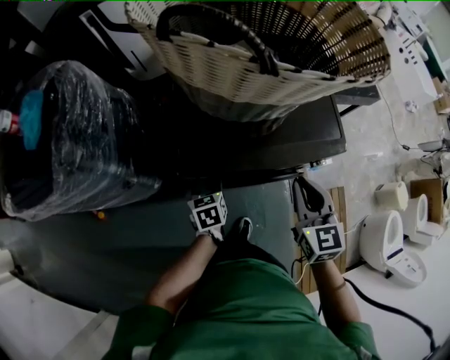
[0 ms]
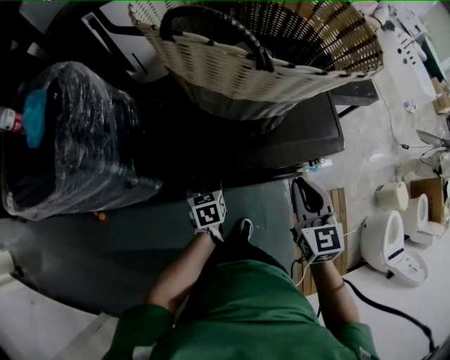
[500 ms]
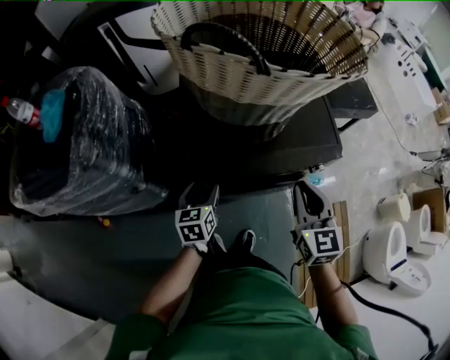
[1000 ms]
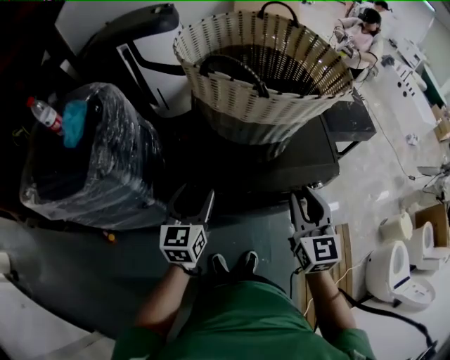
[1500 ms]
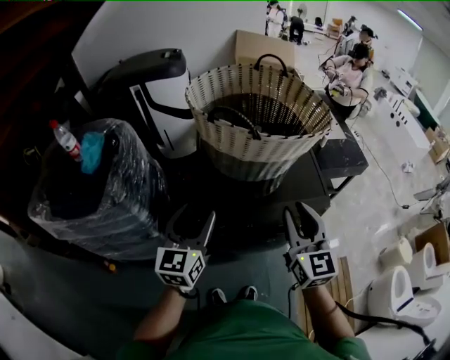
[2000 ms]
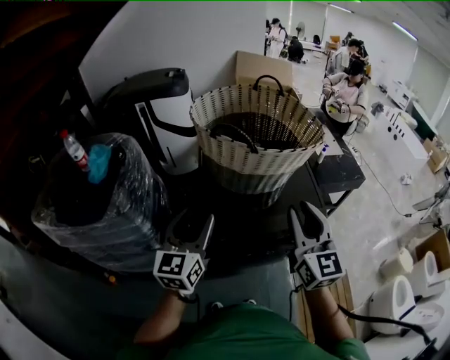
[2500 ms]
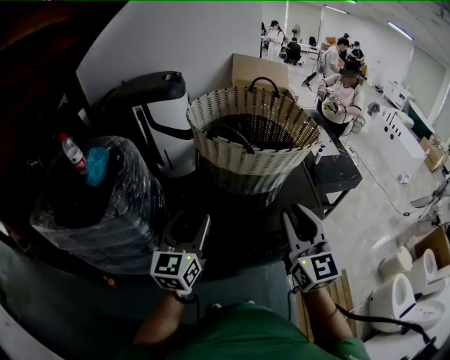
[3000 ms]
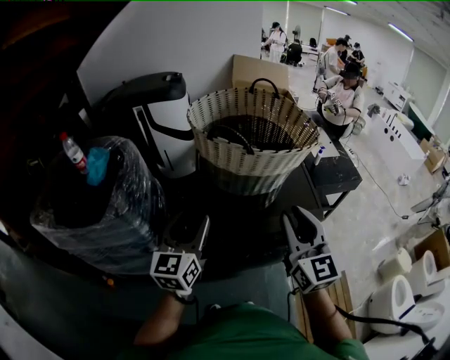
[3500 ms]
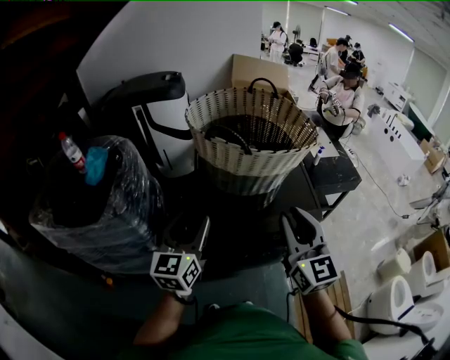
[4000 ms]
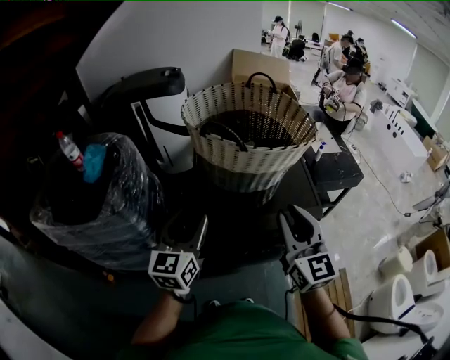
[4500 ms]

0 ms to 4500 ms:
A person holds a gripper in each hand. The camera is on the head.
0 ms to 2000 ms: The right gripper goes about 20 cm upward, and changes its angle by about 20 degrees; the left gripper is displaced upward by about 35 cm, and points its fingers roughly 50 degrees further upward.
2000 ms to 4500 ms: The right gripper is displaced upward by approximately 5 cm.

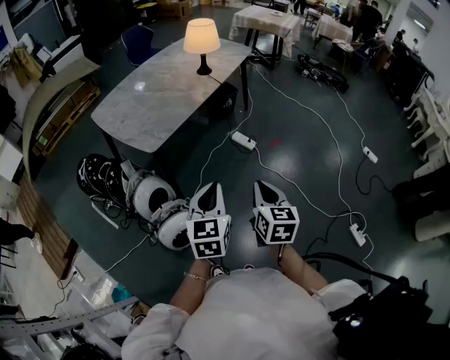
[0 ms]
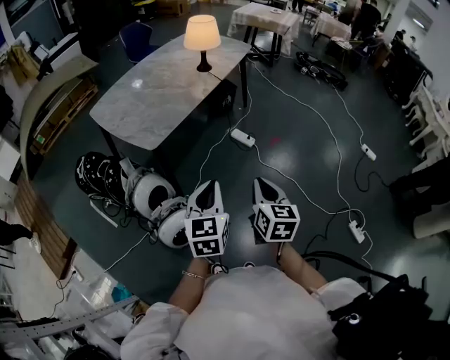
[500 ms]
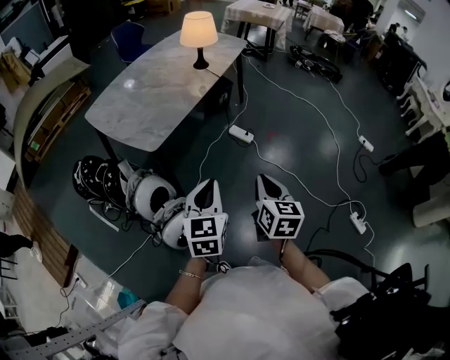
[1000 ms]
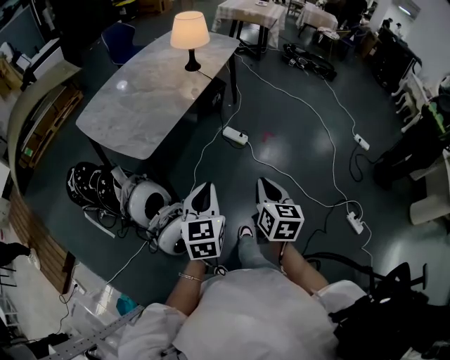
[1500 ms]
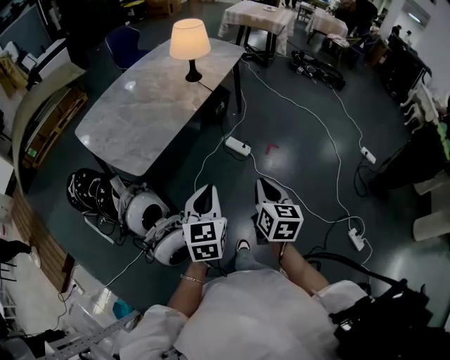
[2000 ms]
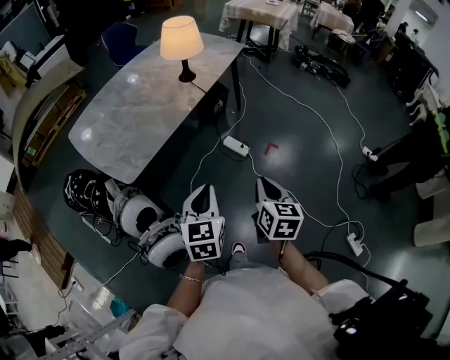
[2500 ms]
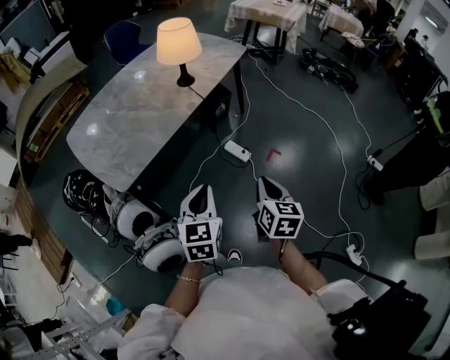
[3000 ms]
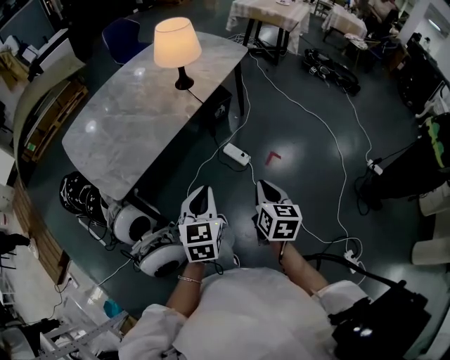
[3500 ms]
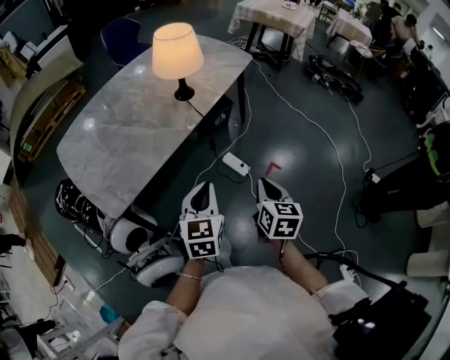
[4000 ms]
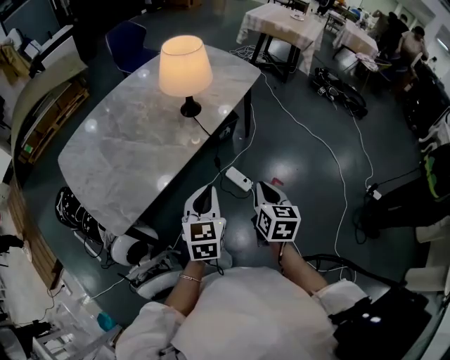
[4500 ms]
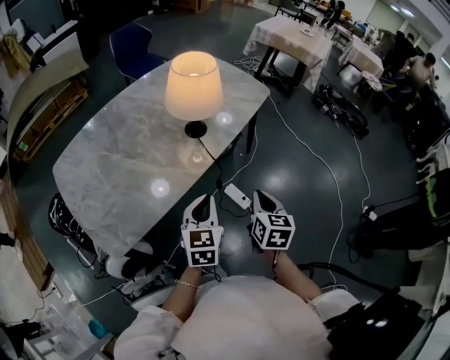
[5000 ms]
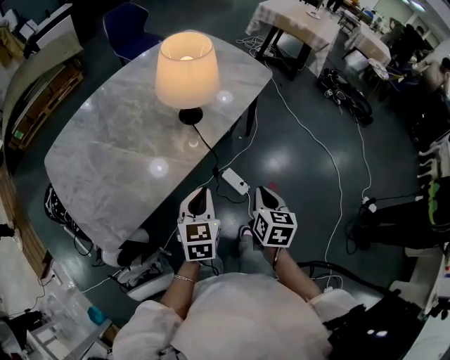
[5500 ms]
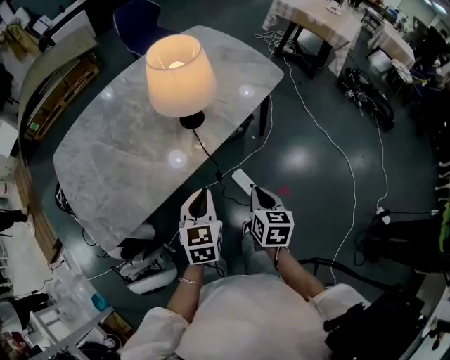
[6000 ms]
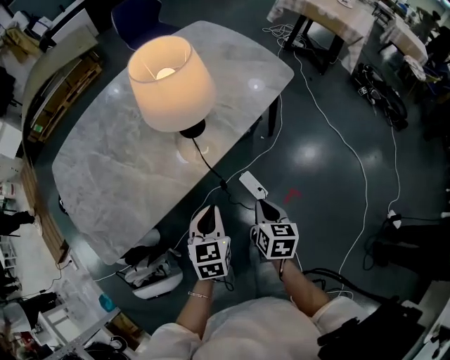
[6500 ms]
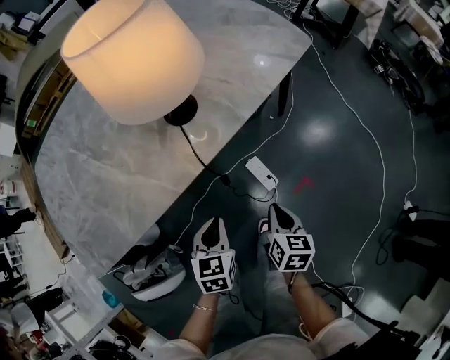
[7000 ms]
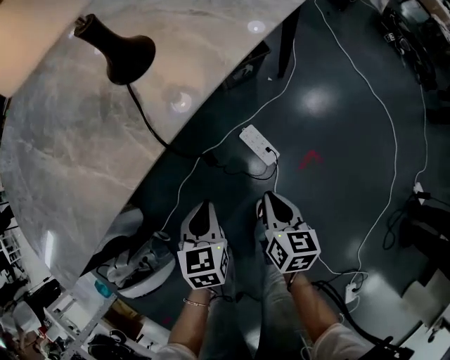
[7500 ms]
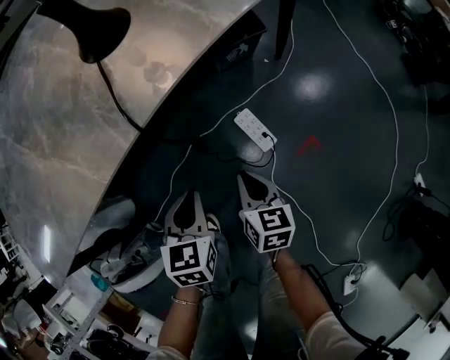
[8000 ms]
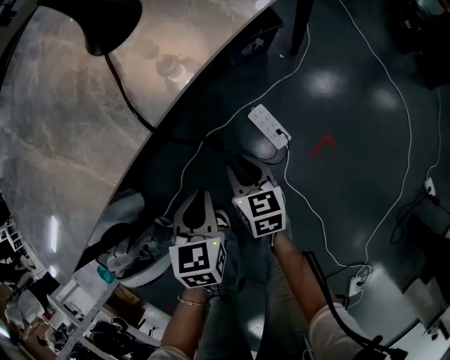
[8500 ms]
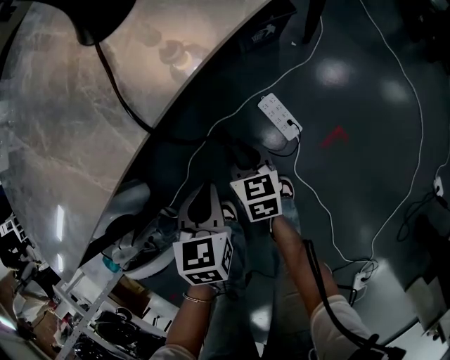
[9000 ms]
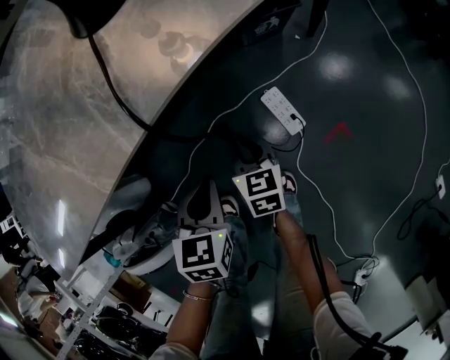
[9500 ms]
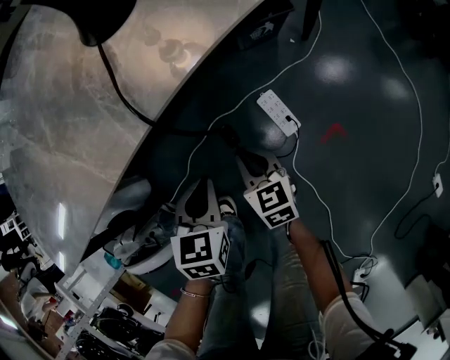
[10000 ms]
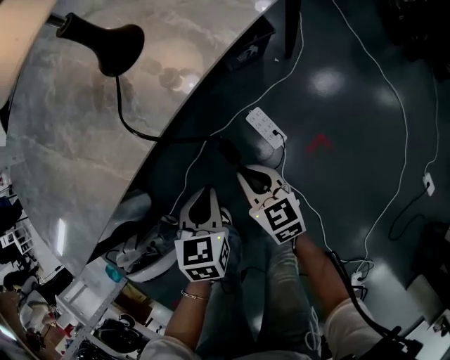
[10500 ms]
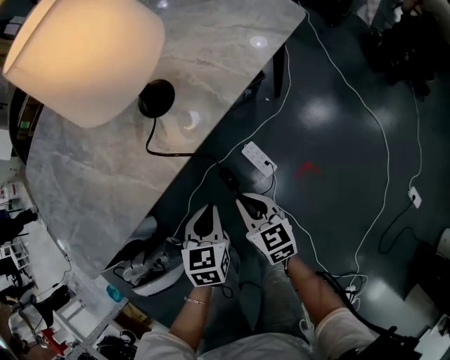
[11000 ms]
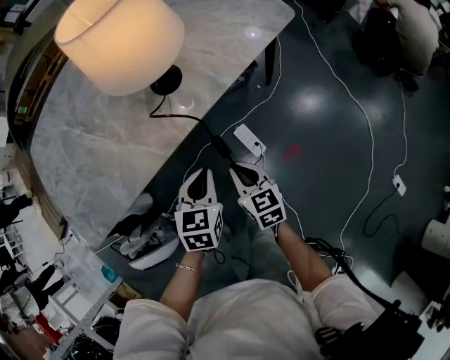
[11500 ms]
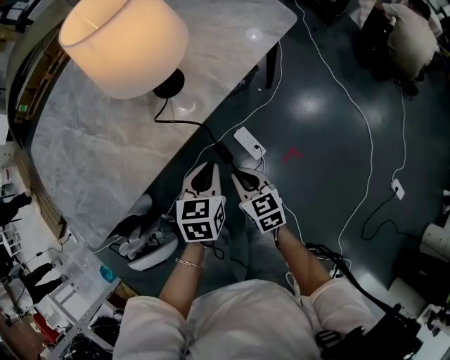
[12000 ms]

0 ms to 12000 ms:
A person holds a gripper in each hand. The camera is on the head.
0 ms to 2000 ms: Both grippers travel together forward, roughly 15 cm.
2000 ms to 4000 ms: The grippers both shift forward by approximately 25 cm.
4000 ms to 6000 ms: Both grippers travel together forward, about 25 cm.
6000 ms to 8000 ms: Both grippers travel together downward, approximately 35 cm.
8000 ms to 10000 ms: The right gripper shifts about 5 cm to the left, swivels roughly 20 degrees, and opens, then closes once more.
10000 ms to 12000 ms: The grippers both shift upward by approximately 25 cm.

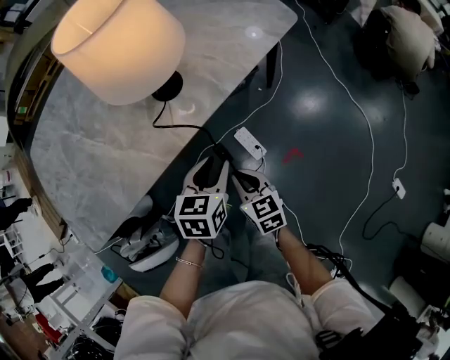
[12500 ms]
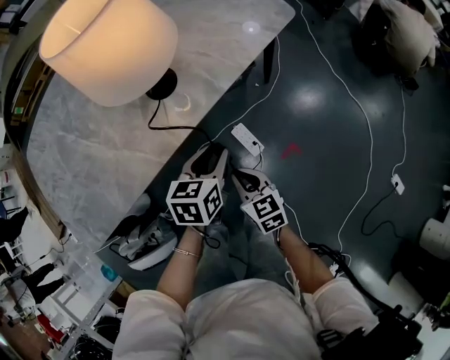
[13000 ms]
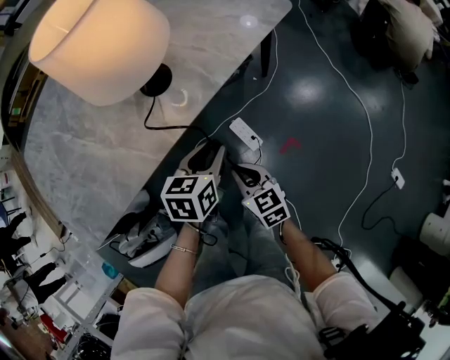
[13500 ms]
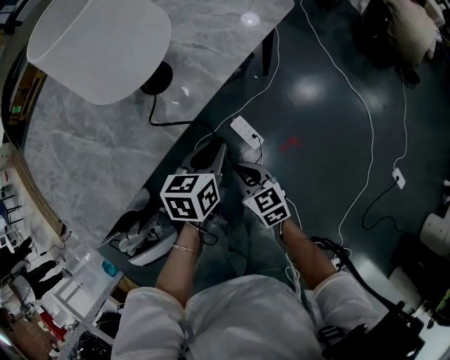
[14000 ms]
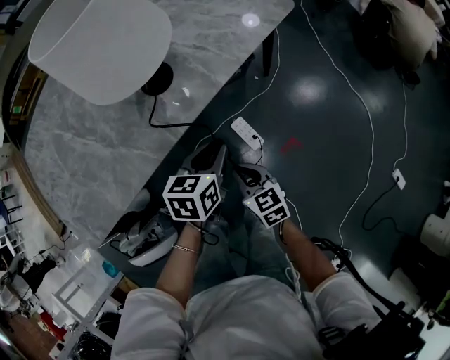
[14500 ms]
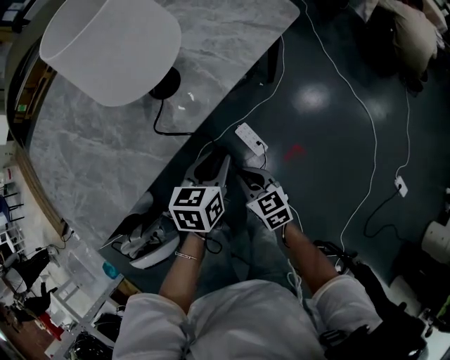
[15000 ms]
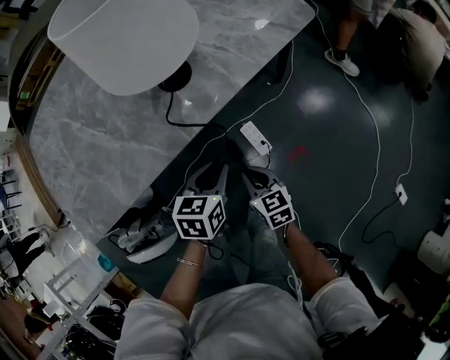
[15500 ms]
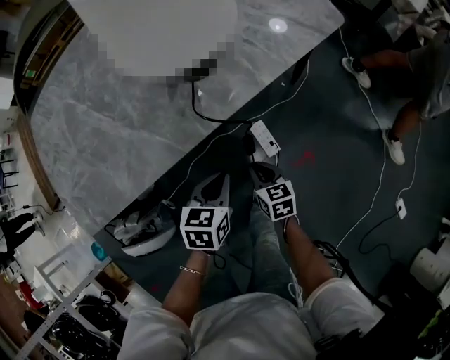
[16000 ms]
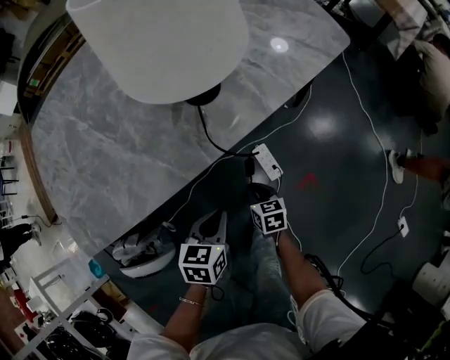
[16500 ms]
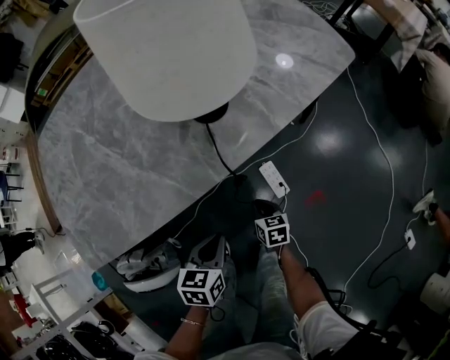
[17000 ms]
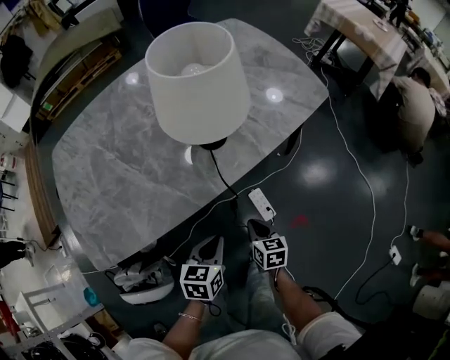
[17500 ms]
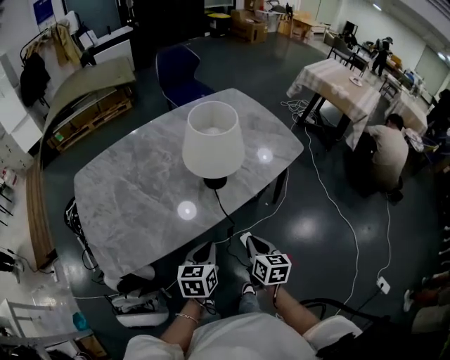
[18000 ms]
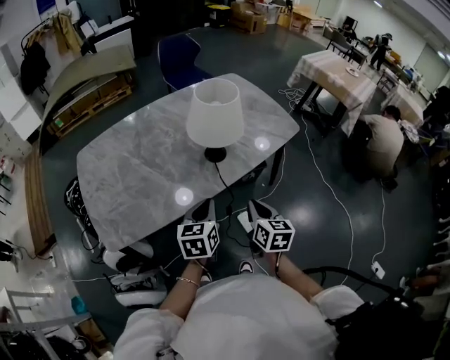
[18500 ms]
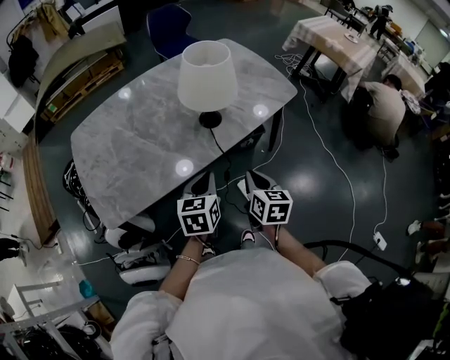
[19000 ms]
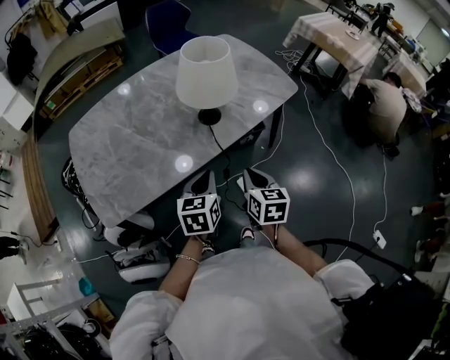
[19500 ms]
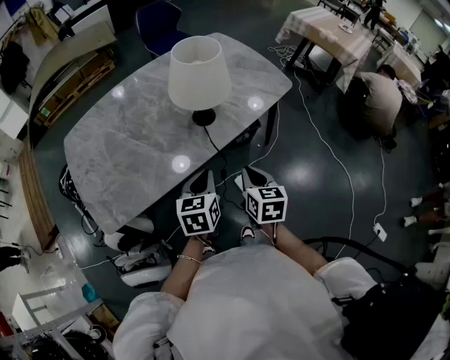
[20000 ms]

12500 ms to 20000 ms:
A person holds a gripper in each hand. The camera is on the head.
12500 ms to 14500 ms: The grippers make only small movements.
14500 ms to 16500 ms: The left gripper heads to the left, backward and downward, covering about 15 cm. The right gripper moves downward, approximately 15 cm.
16500 ms to 18000 ms: The right gripper heads upward, covering roughly 30 cm, and turns by some 20 degrees. Meanwhile the left gripper goes roughly 20 cm upward.
18000 ms to 20000 ms: The right gripper moves upward, approximately 5 cm.

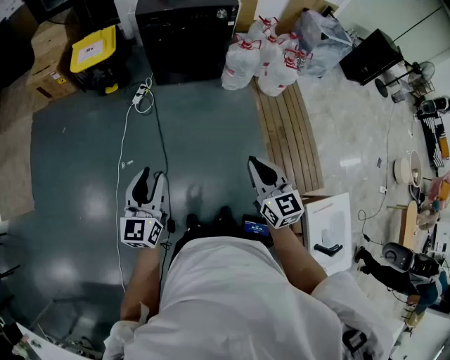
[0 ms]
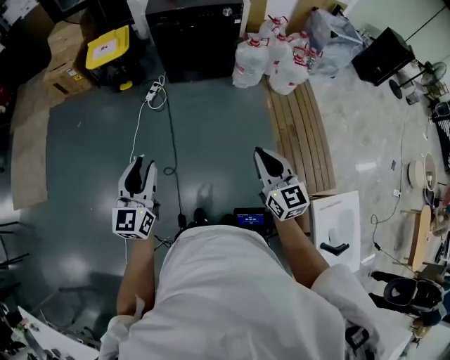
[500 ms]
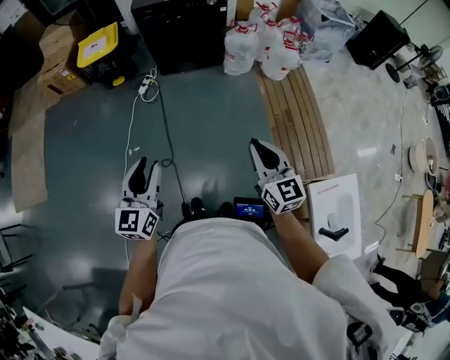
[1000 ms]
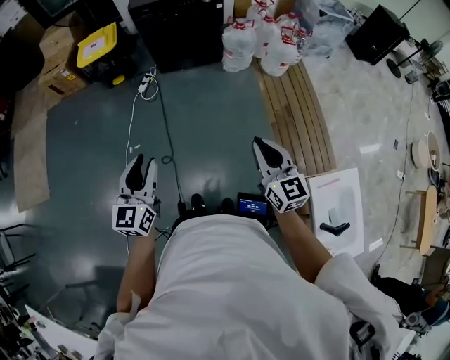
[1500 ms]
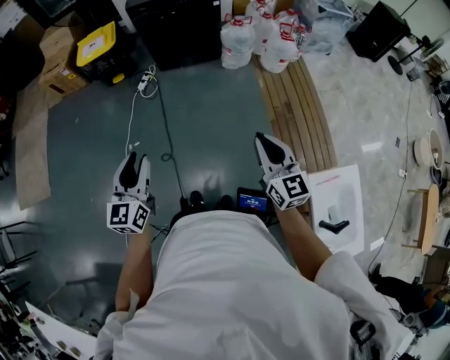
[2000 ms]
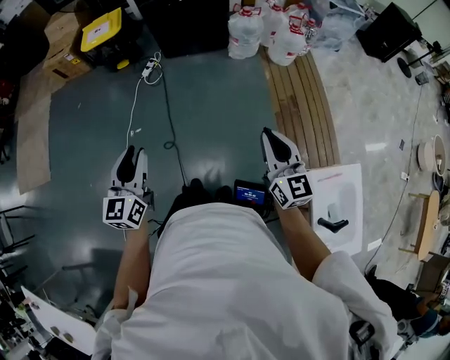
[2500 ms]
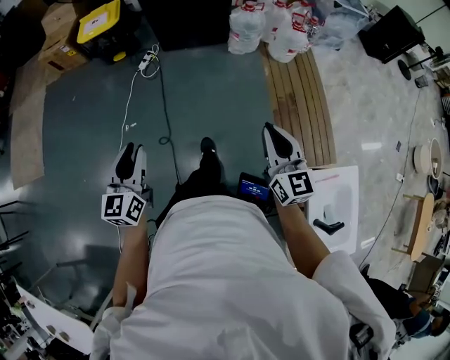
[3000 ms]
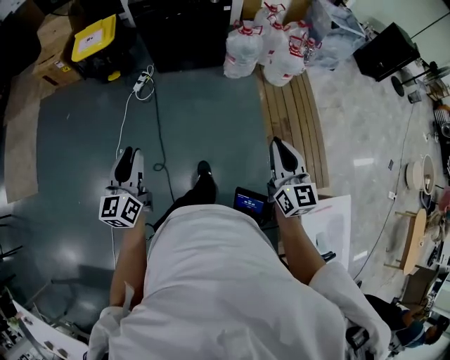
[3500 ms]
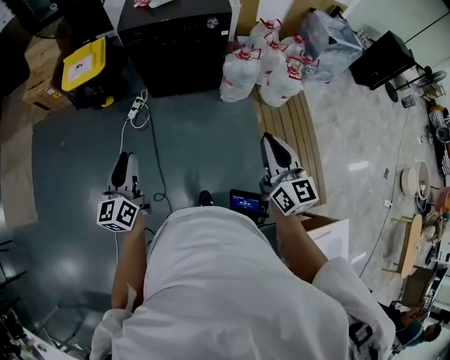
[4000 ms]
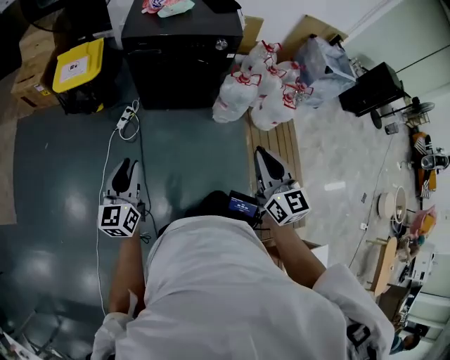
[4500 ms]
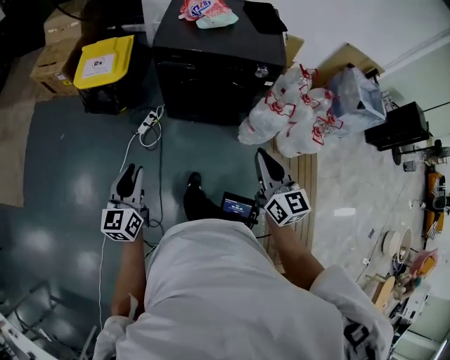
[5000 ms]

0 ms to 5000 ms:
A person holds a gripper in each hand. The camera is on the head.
0 ms to 2500 ms: The right gripper moves to the right and backward, about 20 cm. The left gripper goes roughly 15 cm backward and to the right.
2500 ms to 5000 ms: Both grippers are carried forward, about 60 cm.
